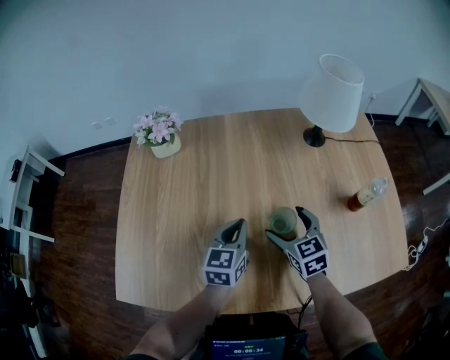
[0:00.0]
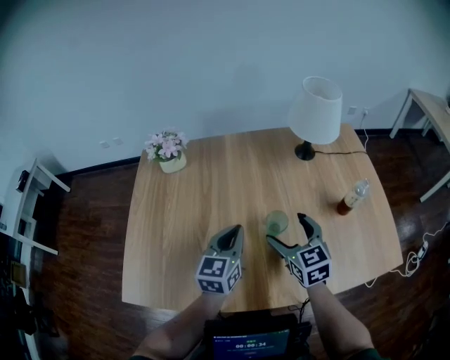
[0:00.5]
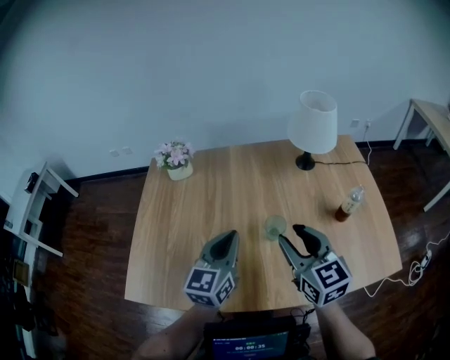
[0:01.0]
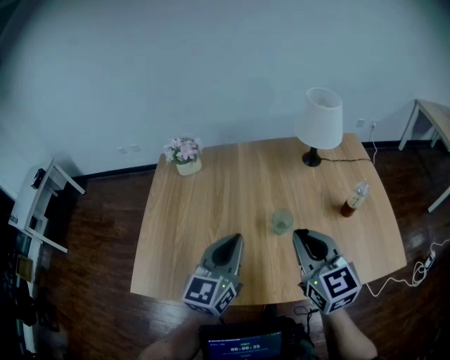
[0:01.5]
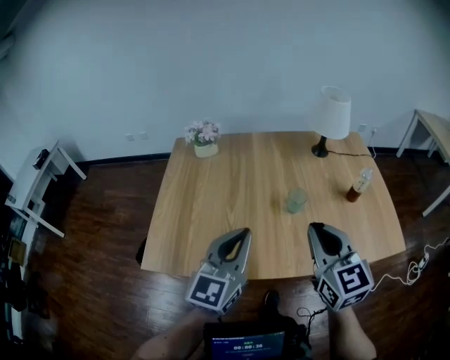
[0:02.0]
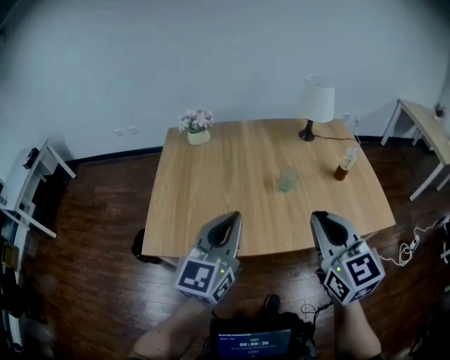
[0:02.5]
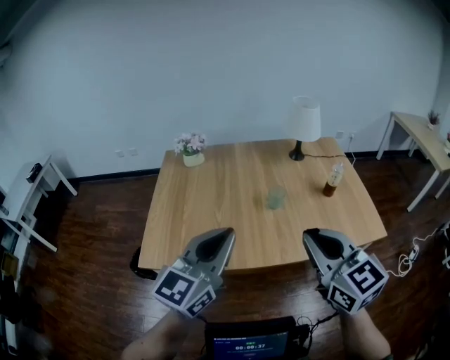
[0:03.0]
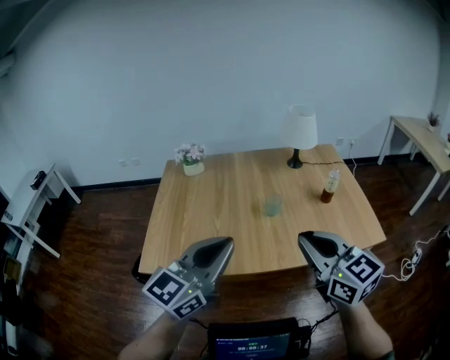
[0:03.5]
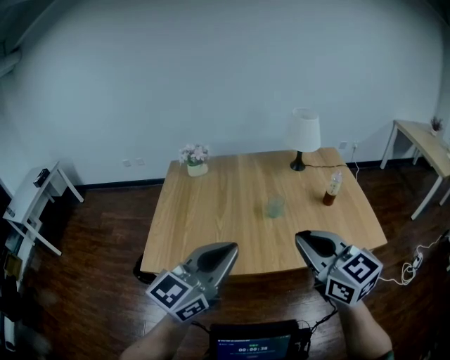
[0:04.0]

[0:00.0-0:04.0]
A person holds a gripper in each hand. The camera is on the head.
0:00.0 to 0:02.0: The right gripper is displaced upward and backward by some 35 cm, rotates approximately 20 degrees, and closes up. Meanwhile the left gripper moves backward and upward, roughly 30 cm, and turns by some 30 degrees.
0:02.0 to 0:04.0: Both grippers travel together backward and upward, approximately 15 cm.

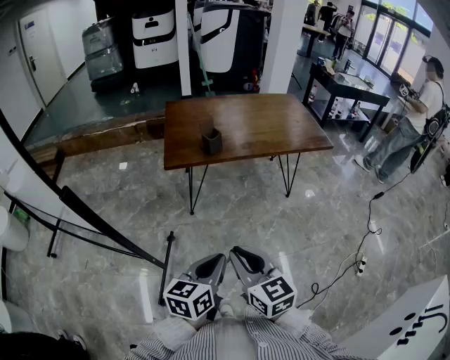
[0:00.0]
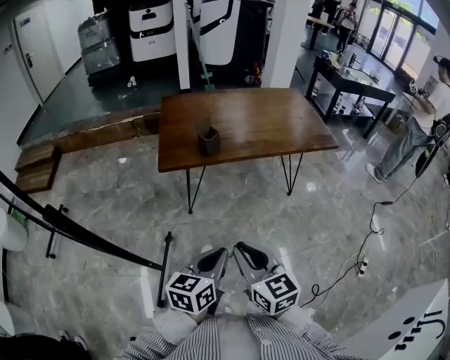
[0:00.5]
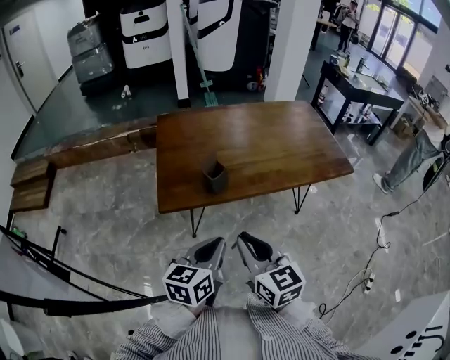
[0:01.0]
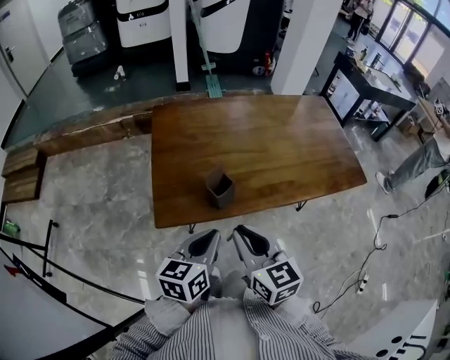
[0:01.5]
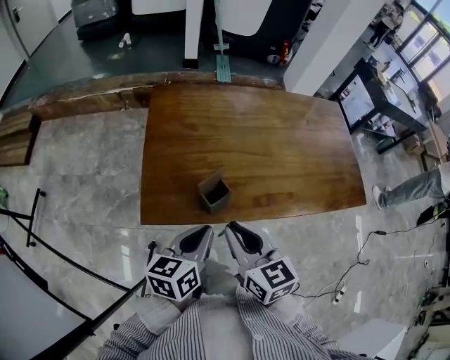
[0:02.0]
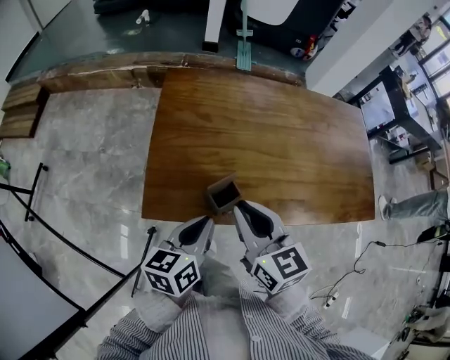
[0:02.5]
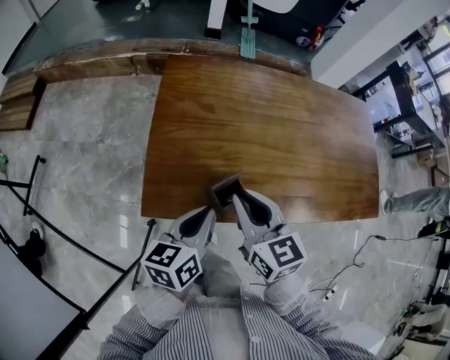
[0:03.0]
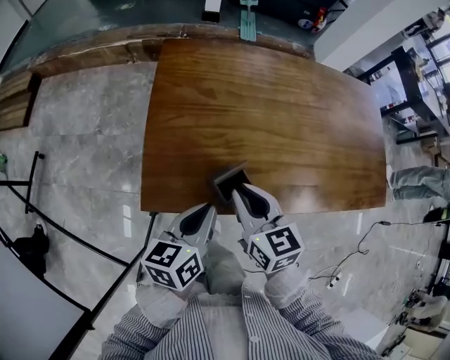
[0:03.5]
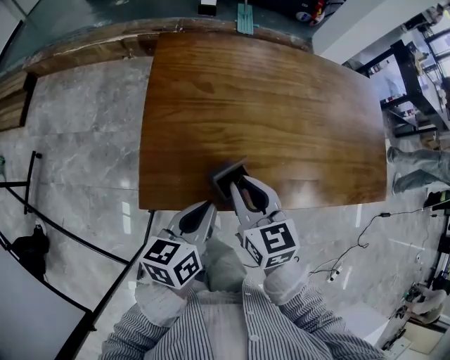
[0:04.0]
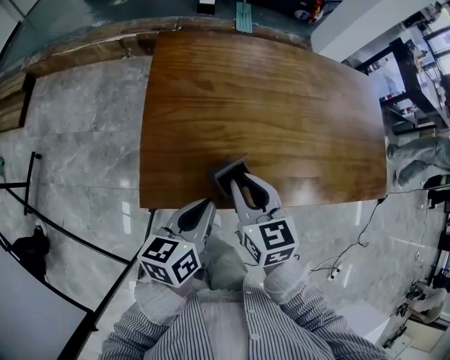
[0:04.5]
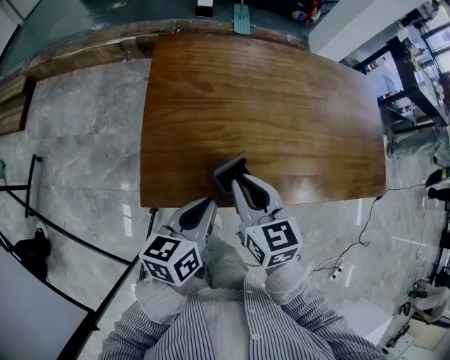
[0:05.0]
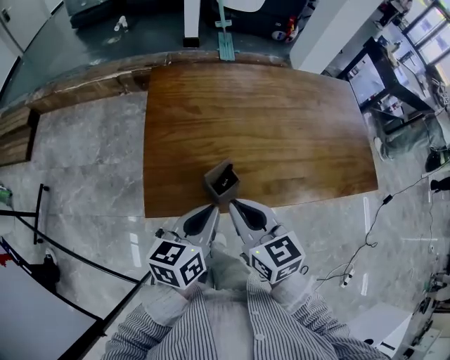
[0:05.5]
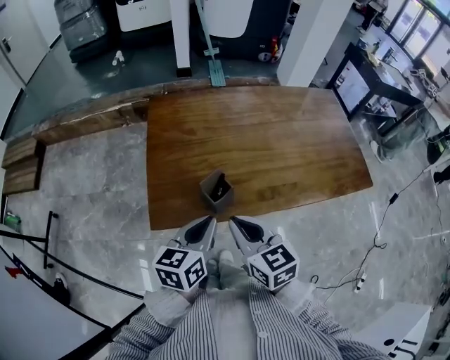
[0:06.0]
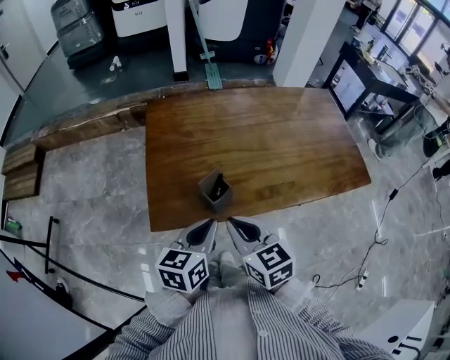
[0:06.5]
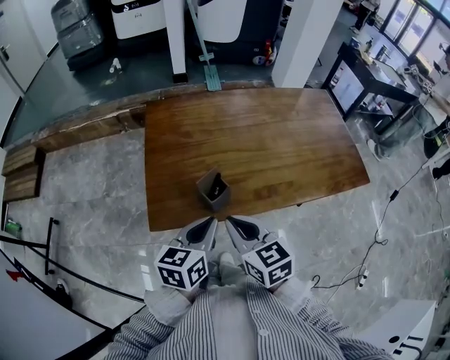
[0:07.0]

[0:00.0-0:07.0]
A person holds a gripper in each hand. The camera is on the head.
0:00.0 to 0:02.0: Both grippers are carried forward, some 50 cm.
0:02.0 to 0:03.5: The left gripper is displaced forward by about 5 cm. The right gripper travels forward and downward by roughly 10 cm.
0:03.5 to 0:05.0: The grippers make only small movements.
0:05.0 to 0:07.0: The right gripper moves backward and upward, about 10 cm; the left gripper goes about 5 cm upward.

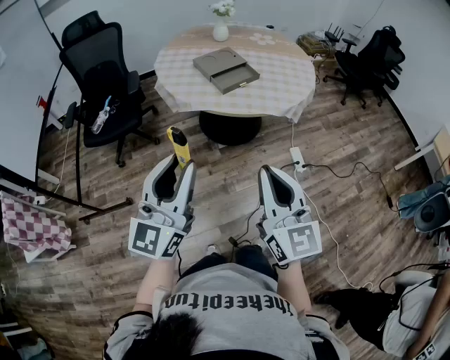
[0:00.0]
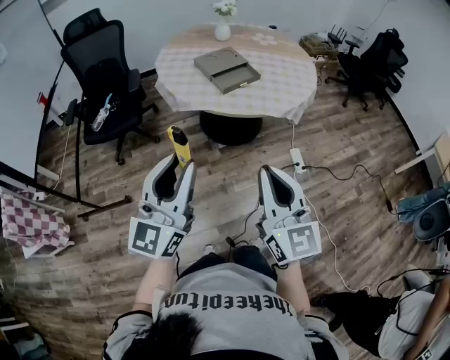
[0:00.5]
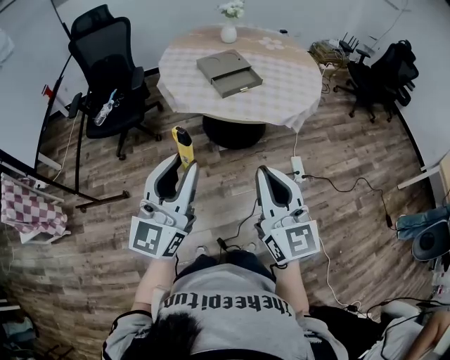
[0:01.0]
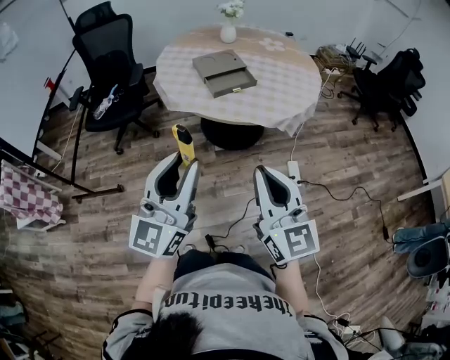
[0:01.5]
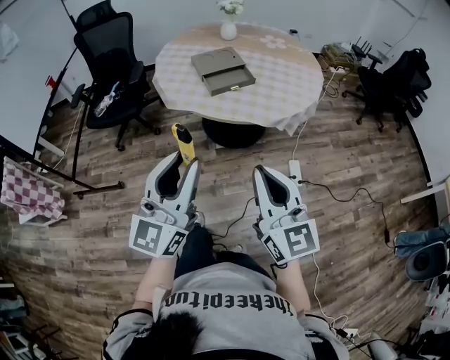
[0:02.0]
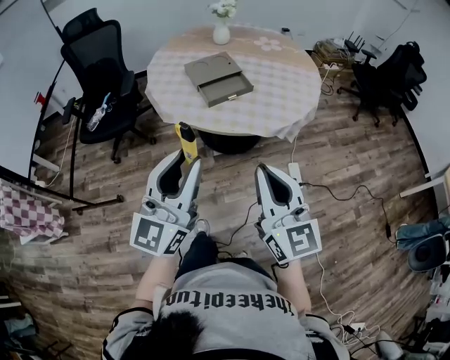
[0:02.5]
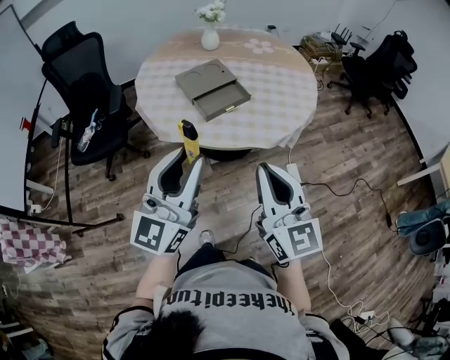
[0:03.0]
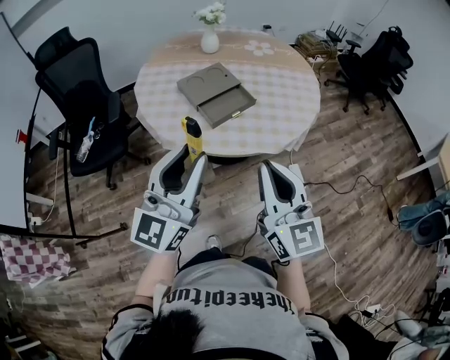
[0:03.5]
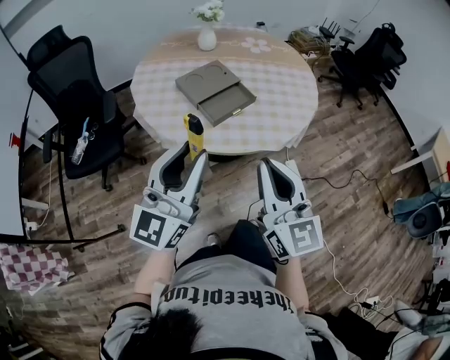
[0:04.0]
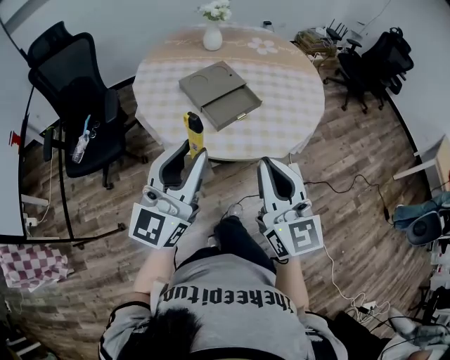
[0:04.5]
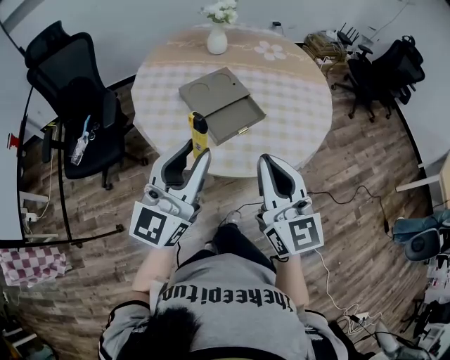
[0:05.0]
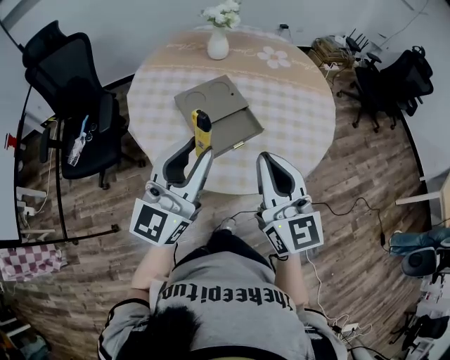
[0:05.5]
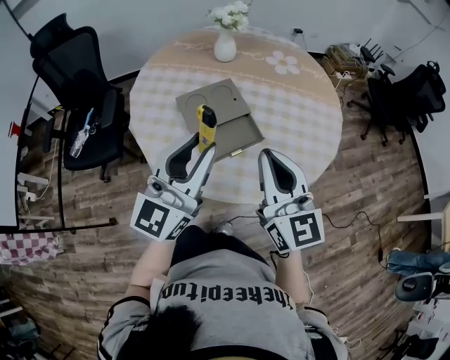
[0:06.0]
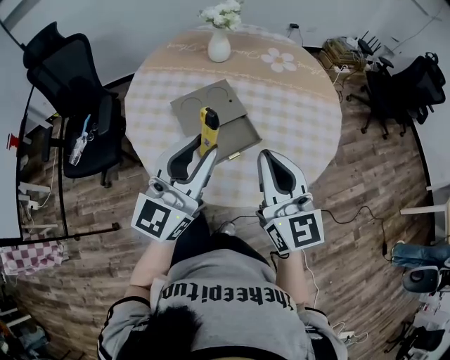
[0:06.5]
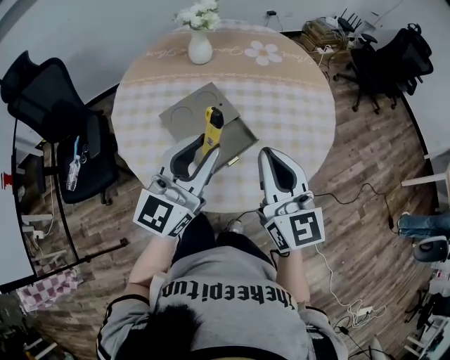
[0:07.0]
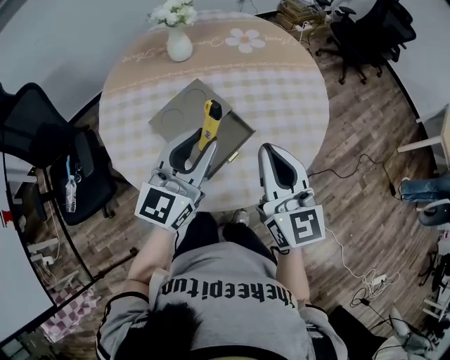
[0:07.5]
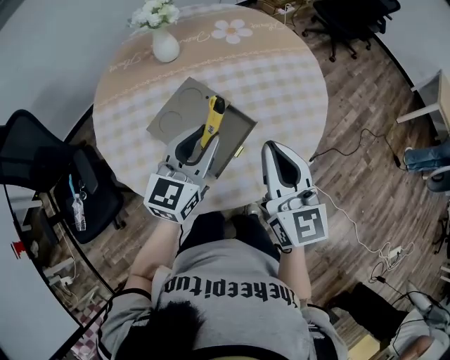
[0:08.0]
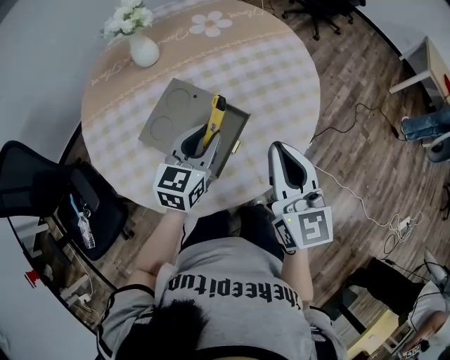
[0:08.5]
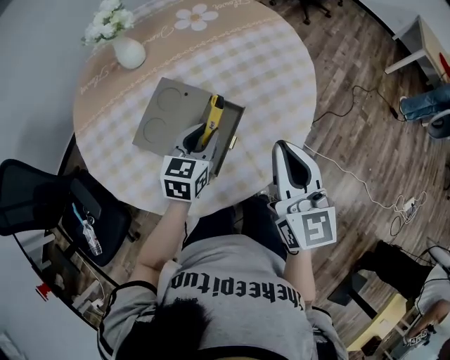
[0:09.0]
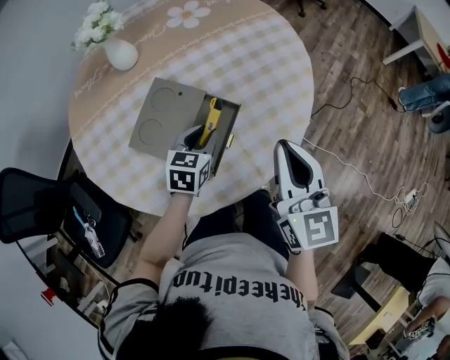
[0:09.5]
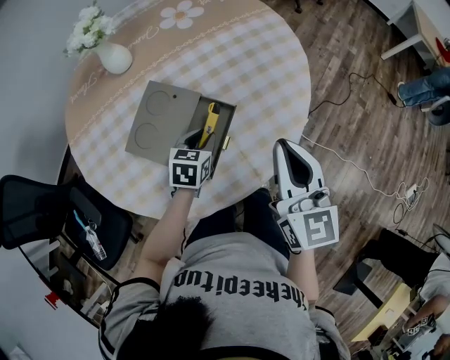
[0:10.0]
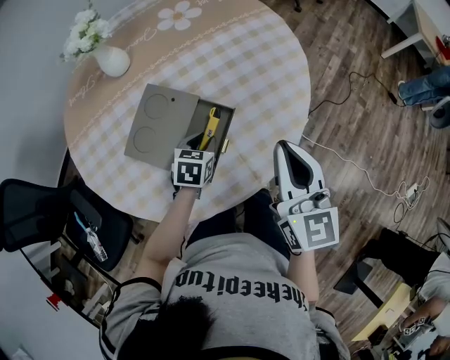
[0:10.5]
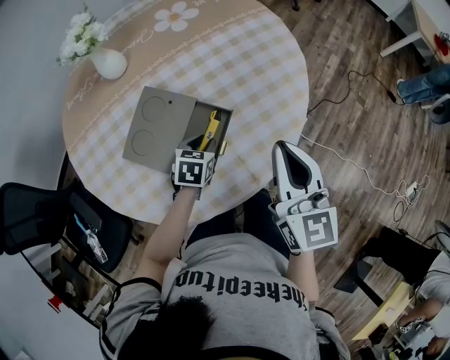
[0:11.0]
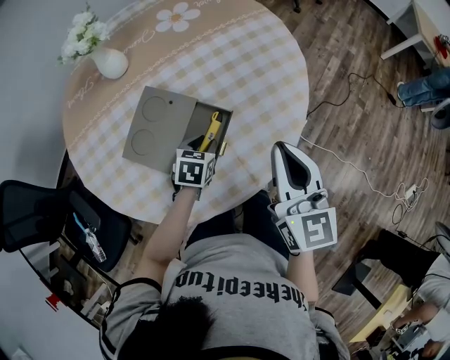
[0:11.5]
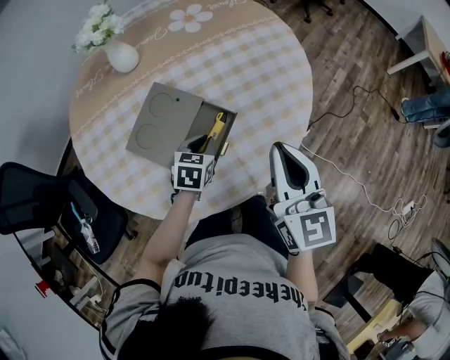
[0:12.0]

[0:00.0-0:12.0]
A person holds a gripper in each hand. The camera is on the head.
0:00.0 to 0:02.0: The left gripper goes approximately 15 cm to the right. Meanwhile the right gripper is displaced to the right and forward by some 15 cm.
0:02.0 to 0:04.0: The grippers both shift forward and to the left by roughly 20 cm.
0:04.0 to 0:06.0: The two grippers go about 20 cm forward.
0:06.0 to 0:08.0: The right gripper ends up about 5 cm from where it was, and turns by some 30 degrees. The left gripper changes place by some 20 cm, and rotates approximately 30 degrees.
0:08.0 to 0:10.0: The left gripper shifts about 20 cm downward, and tips its fingers downward by roughly 40 degrees. The right gripper heads to the right, covering roughly 5 cm.
0:10.0 to 0:12.0: The grippers make only small movements.

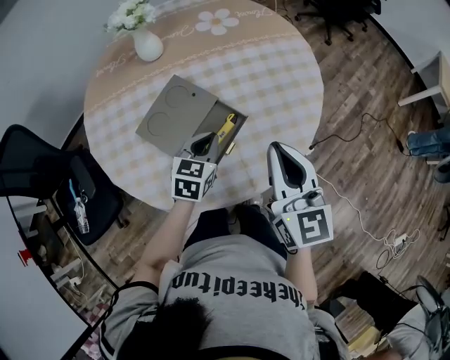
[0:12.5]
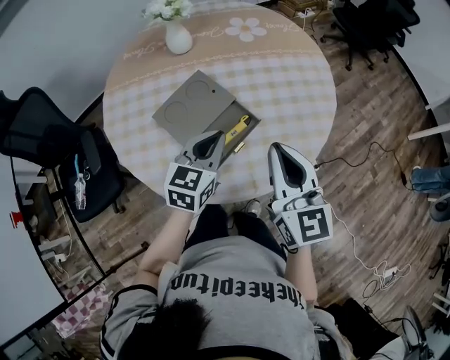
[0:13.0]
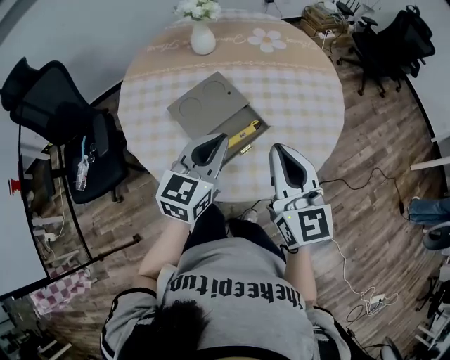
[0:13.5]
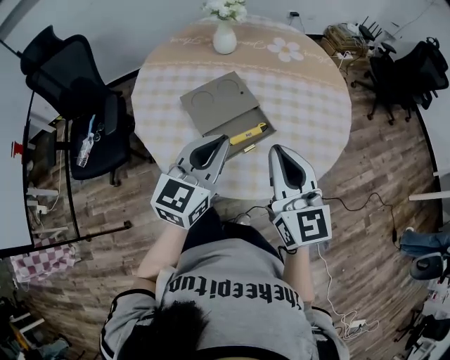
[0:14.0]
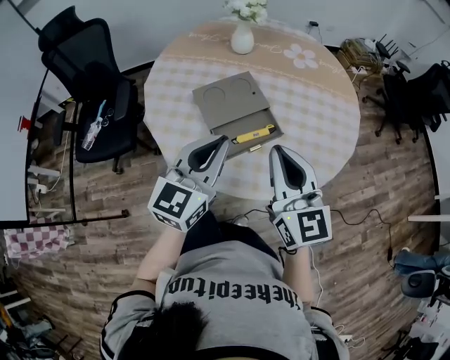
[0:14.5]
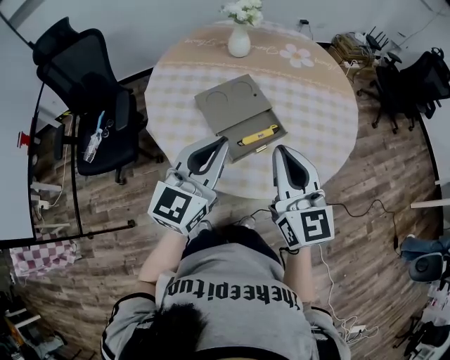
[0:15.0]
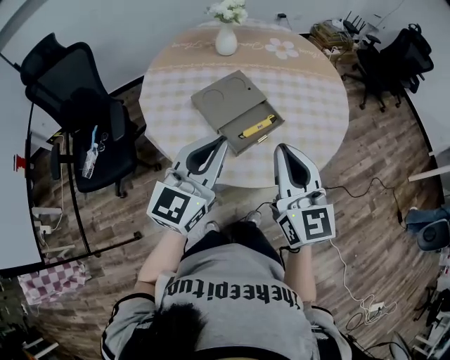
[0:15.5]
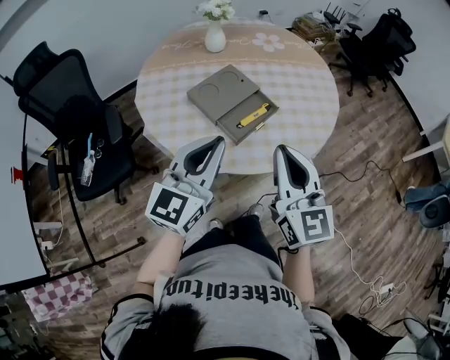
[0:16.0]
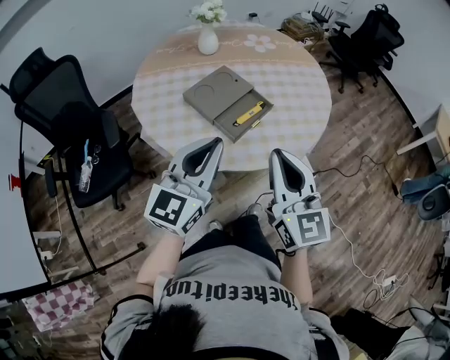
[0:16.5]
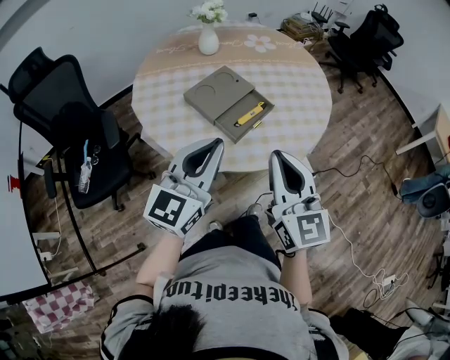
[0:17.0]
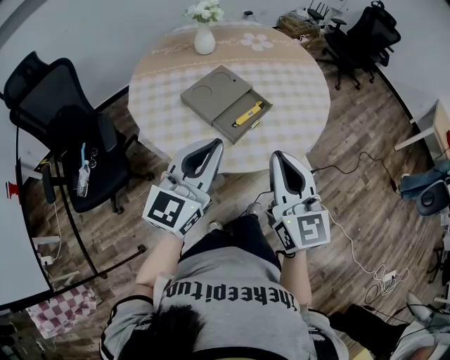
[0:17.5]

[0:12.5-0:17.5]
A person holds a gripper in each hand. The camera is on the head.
0:12.5 to 0:15.0: The left gripper goes about 20 cm upward, and tilts its fingers about 30 degrees upward, while the right gripper moves some 10 cm, and swivels roughly 30 degrees.
0:15.0 to 0:17.5: Both grippers move backward, roughly 10 cm.
